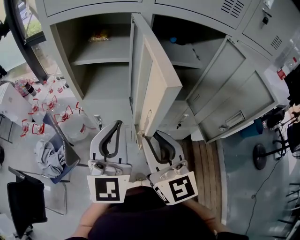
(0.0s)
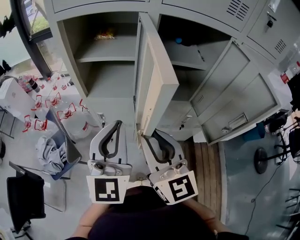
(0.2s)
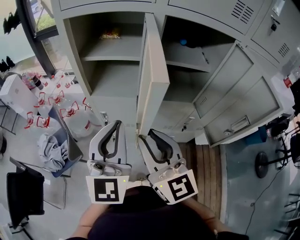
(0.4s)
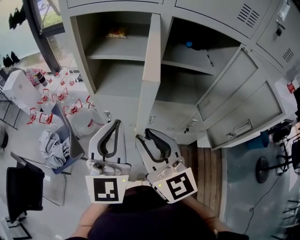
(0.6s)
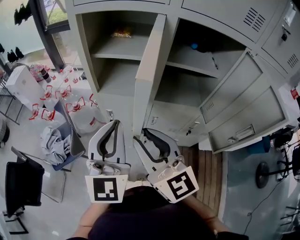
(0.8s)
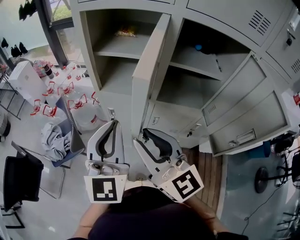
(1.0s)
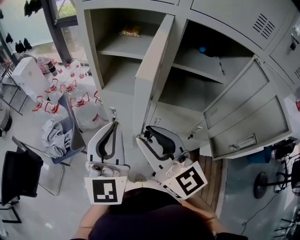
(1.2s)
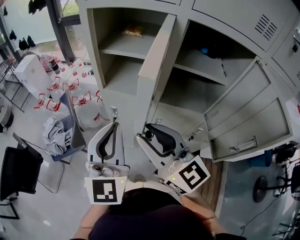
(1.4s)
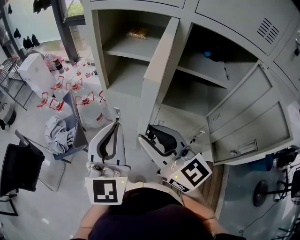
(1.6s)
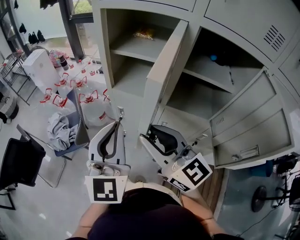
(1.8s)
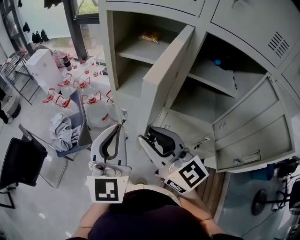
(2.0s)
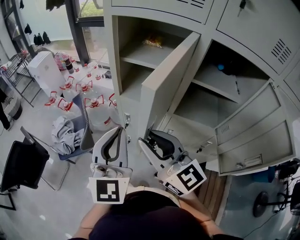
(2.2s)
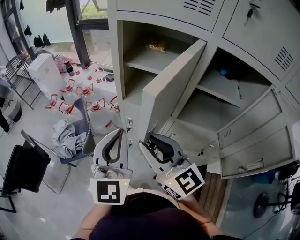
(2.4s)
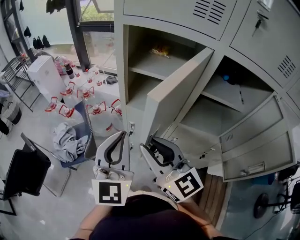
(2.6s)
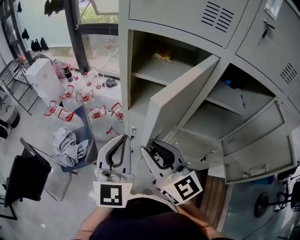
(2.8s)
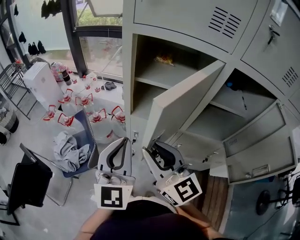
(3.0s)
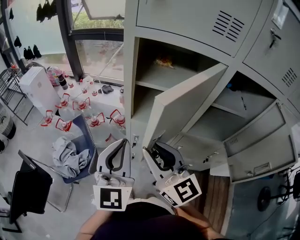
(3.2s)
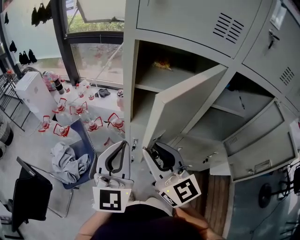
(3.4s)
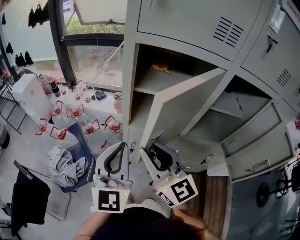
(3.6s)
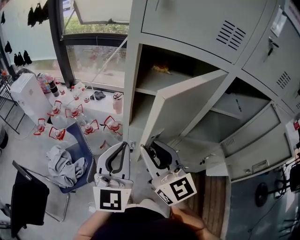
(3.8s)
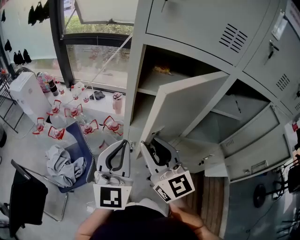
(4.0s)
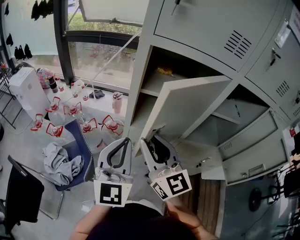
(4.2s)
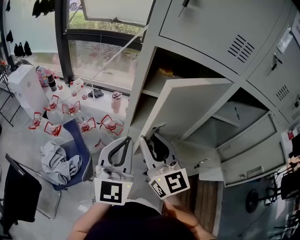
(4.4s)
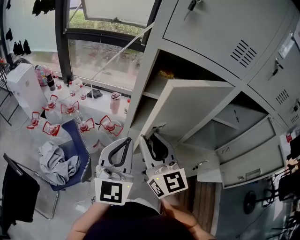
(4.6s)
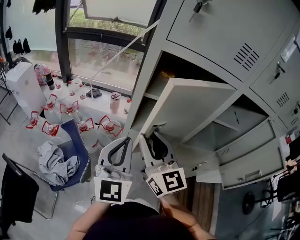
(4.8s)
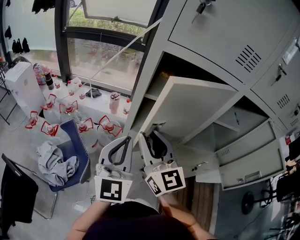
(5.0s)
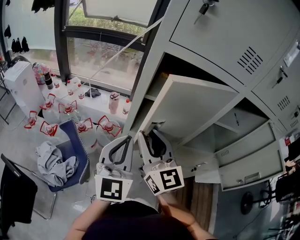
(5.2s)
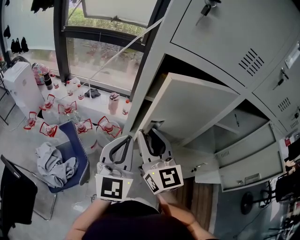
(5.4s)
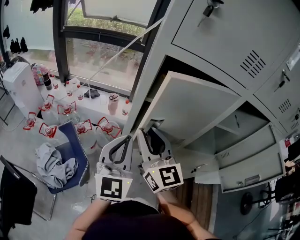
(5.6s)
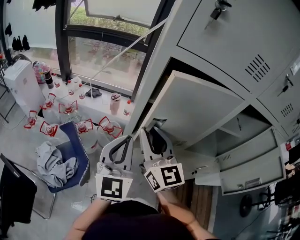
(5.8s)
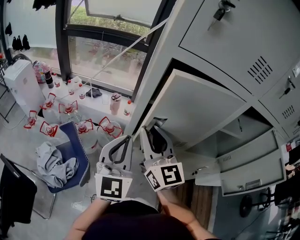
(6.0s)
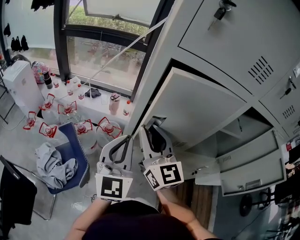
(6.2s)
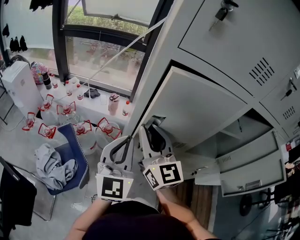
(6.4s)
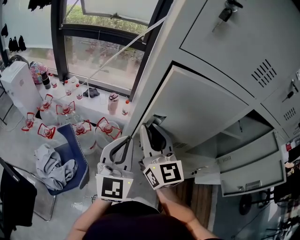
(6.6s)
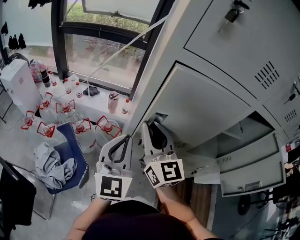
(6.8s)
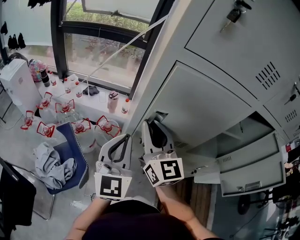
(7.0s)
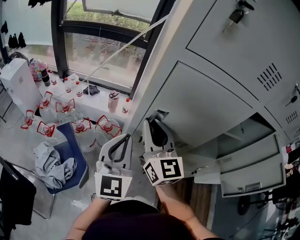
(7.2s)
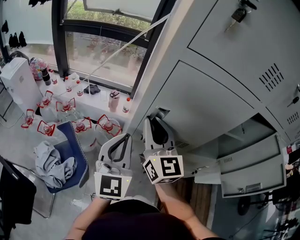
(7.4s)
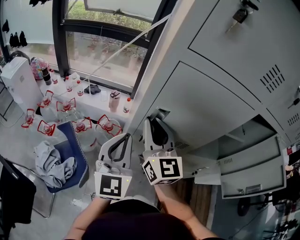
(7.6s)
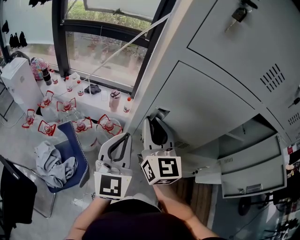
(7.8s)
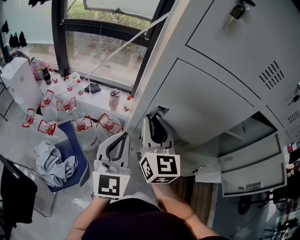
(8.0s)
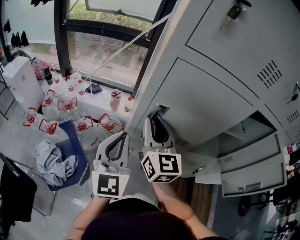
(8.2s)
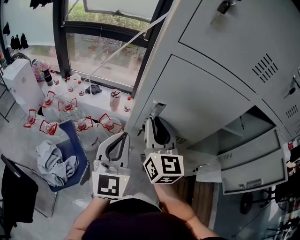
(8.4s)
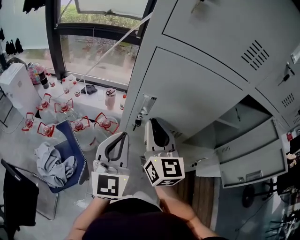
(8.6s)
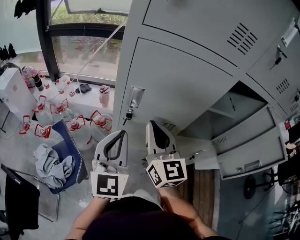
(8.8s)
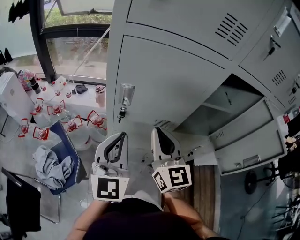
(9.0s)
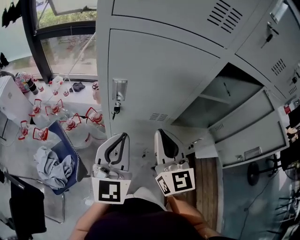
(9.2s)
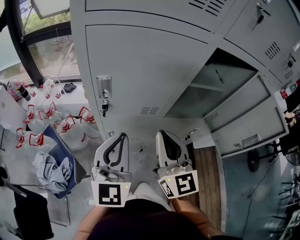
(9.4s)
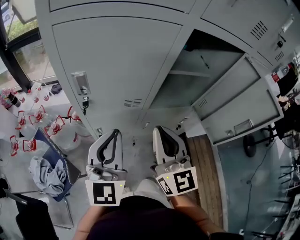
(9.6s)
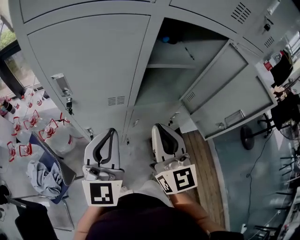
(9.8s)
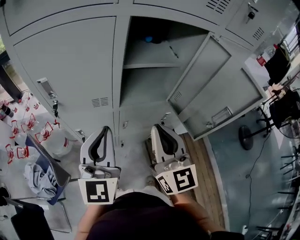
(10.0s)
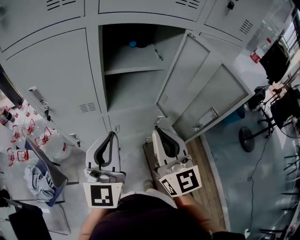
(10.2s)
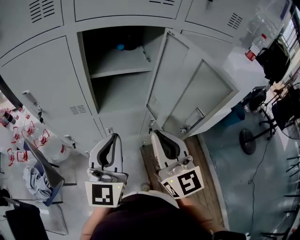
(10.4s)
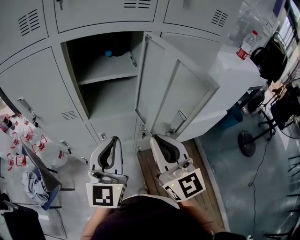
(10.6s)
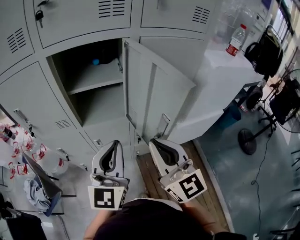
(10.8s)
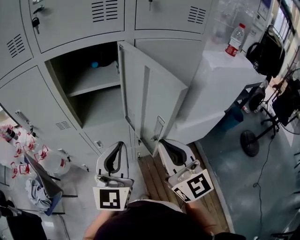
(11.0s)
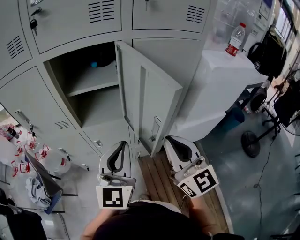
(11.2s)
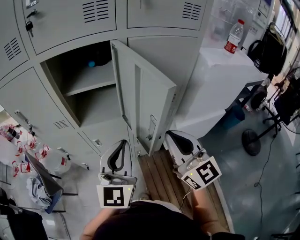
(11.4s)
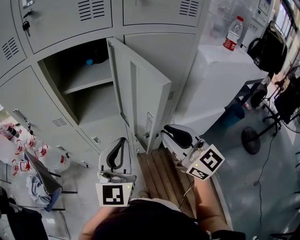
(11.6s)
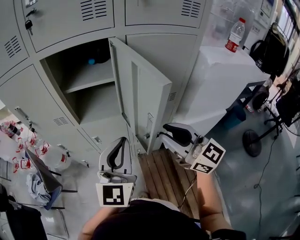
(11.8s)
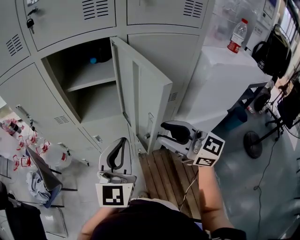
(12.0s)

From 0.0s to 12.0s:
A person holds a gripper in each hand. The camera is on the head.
From 0.0s to 1.6s: The right gripper turns by approximately 40 degrees.
From 1.6s to 3.0s: Both grippers travel together forward and to the left, roughly 15 cm.
From 3.0s to 4.4s: The two grippers go about 5 cm forward.
From 4.4s to 6.0s: The two grippers go approximately 5 cm forward.
From 6.0s to 7.6s: The right gripper is displaced forward by some 5 cm.
From 7.6s to 9.0s: The right gripper goes roughly 15 cm to the right and backward; the left gripper heads to the right and backward, covering approximately 10 cm.
From 9.0s to 10.4s: Both grippers move to the right, roughly 35 cm.
From 10.4s to 12.0s: Both grippers travel together to the right, about 15 cm. The right gripper changes its angle by roughly 40 degrees, and opens its fingers.

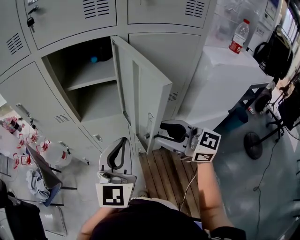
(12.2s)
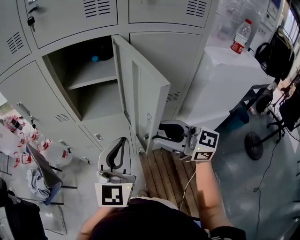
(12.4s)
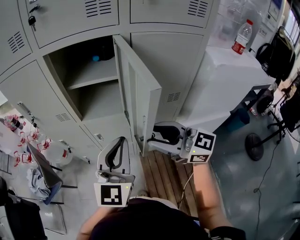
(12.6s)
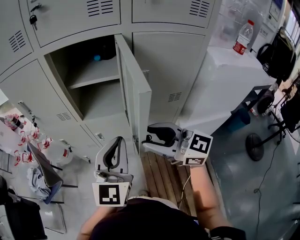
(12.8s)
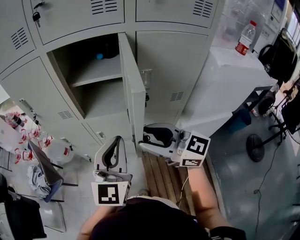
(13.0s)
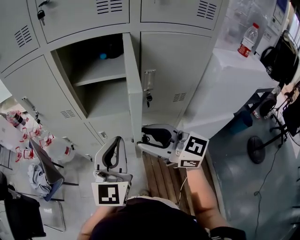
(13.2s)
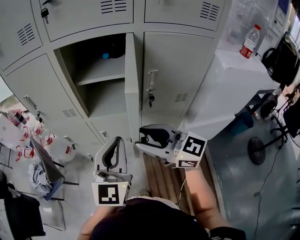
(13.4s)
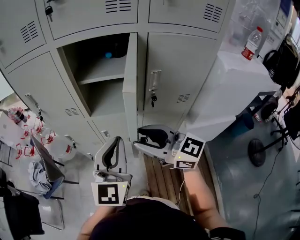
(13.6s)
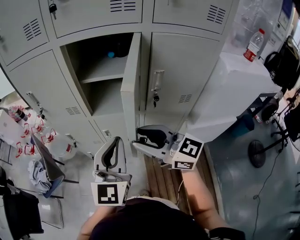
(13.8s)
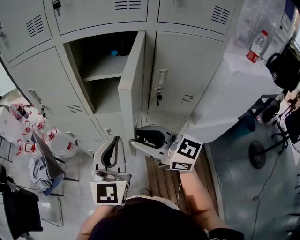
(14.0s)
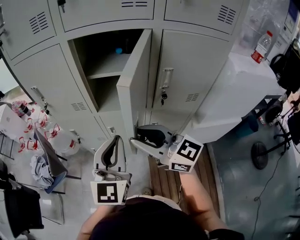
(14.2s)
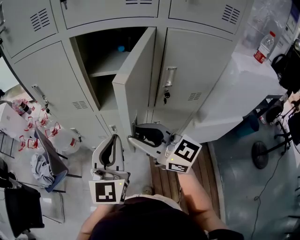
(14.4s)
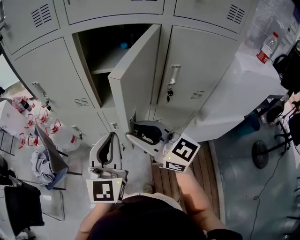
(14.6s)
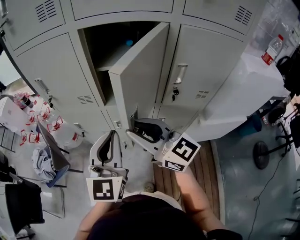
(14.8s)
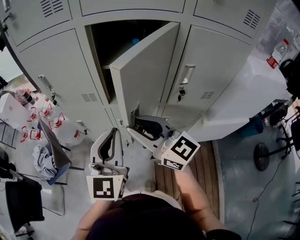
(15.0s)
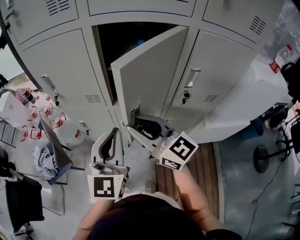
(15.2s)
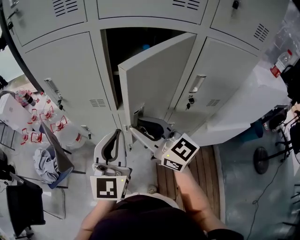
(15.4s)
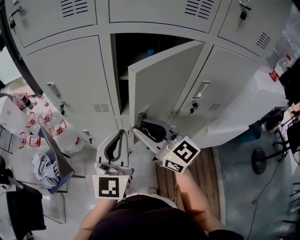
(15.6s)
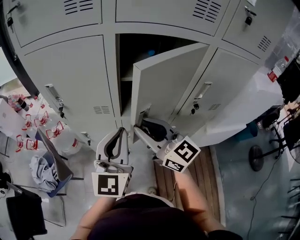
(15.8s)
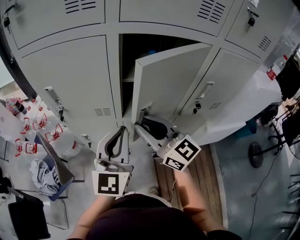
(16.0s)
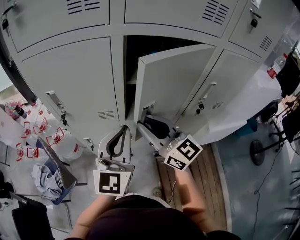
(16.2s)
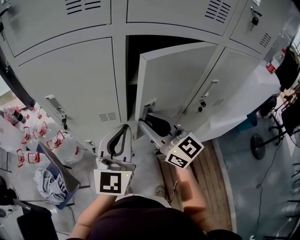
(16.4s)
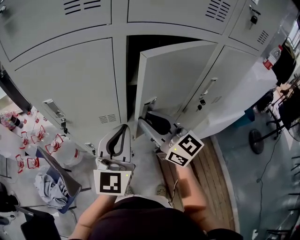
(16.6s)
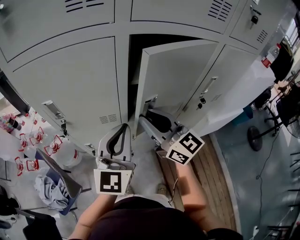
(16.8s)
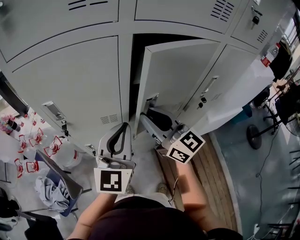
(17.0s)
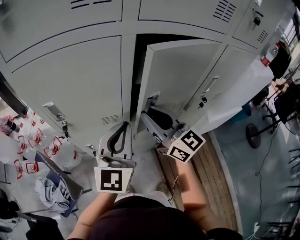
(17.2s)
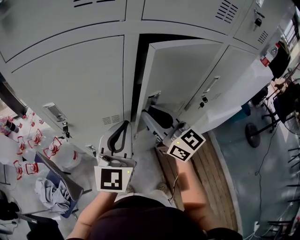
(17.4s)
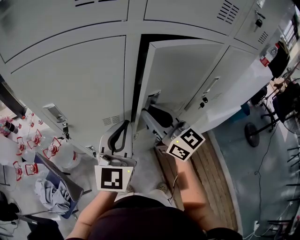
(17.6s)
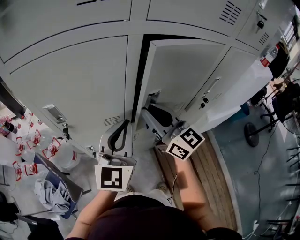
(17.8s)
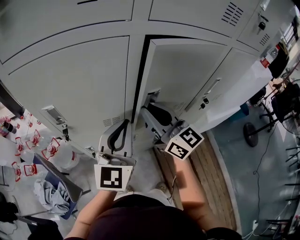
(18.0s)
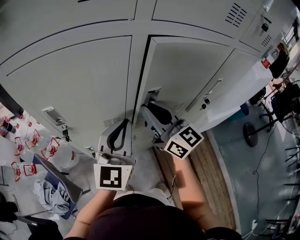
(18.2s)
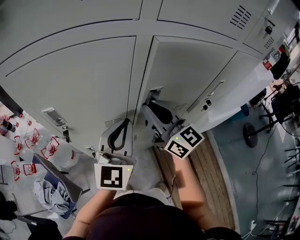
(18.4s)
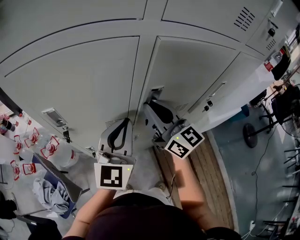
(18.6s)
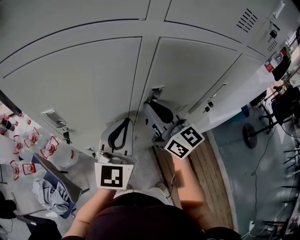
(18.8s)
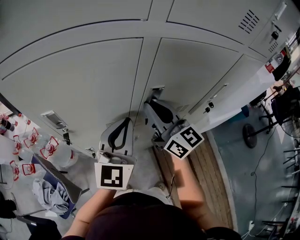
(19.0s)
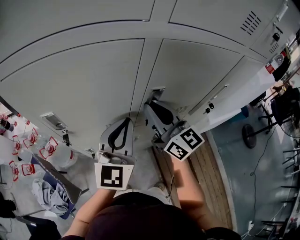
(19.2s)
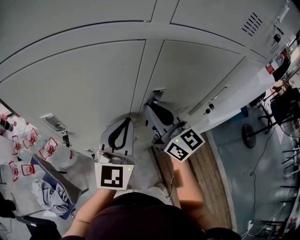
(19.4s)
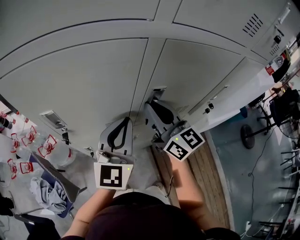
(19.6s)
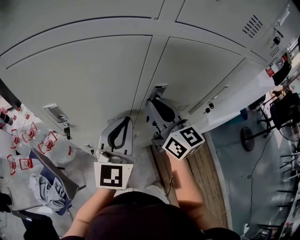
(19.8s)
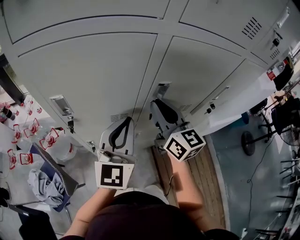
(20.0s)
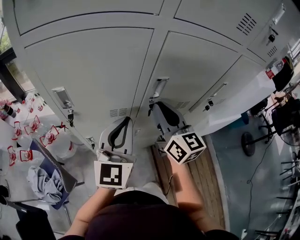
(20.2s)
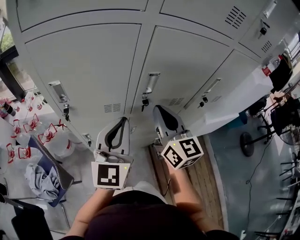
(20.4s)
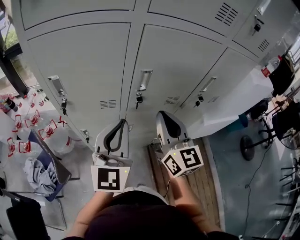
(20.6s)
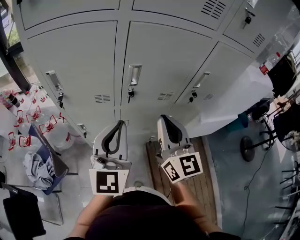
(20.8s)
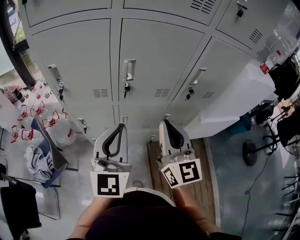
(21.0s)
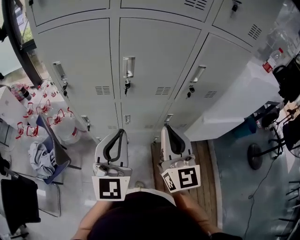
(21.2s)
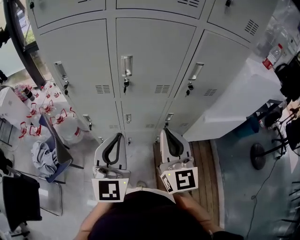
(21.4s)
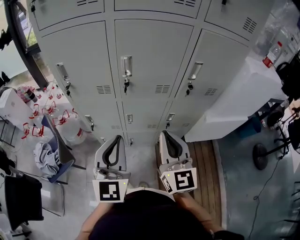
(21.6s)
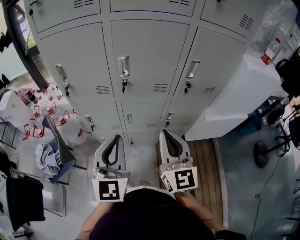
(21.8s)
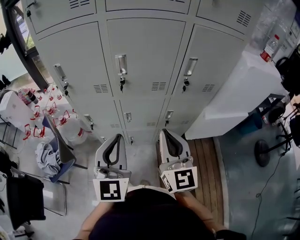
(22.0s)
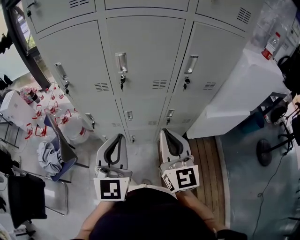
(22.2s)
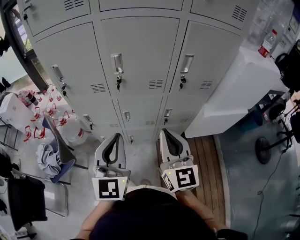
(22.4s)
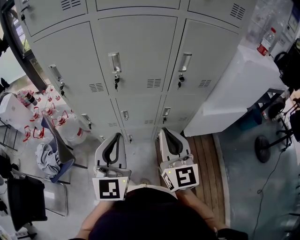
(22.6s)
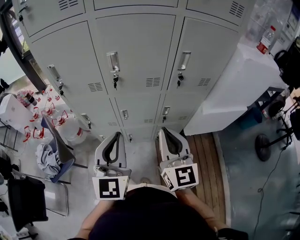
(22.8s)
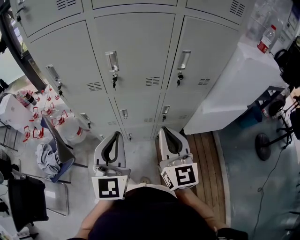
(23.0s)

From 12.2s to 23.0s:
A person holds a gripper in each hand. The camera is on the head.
From 12.2s to 13.8s: The left gripper travels to the left by approximately 5 cm; the right gripper goes approximately 10 cm to the left.
From 13.8s to 15.2s: The left gripper is displaced to the left and forward by roughly 10 cm. Meanwhile the right gripper heads forward and to the left, covering approximately 10 cm.
From 15.2s to 16.8s: The right gripper shifts roughly 10 cm forward, while the left gripper is displaced forward and to the left by approximately 15 cm.
From 16.8s to 18.4s: The right gripper goes about 5 cm forward; the left gripper moves roughly 5 cm.
From 18.4s to 20.0s: The grippers make only small movements.
From 20.0s to 21.4s: Both grippers travel together backward and to the right, approximately 25 cm.
From 21.4s to 23.0s: The right gripper changes place by roughly 5 cm.

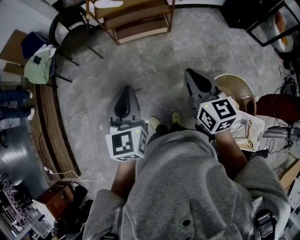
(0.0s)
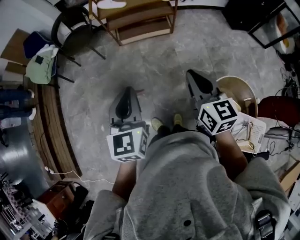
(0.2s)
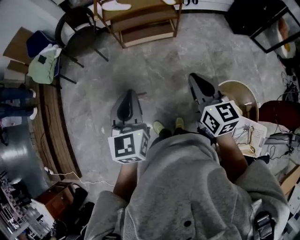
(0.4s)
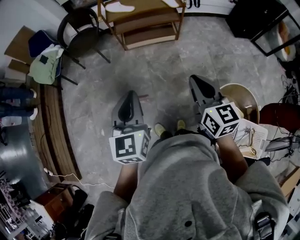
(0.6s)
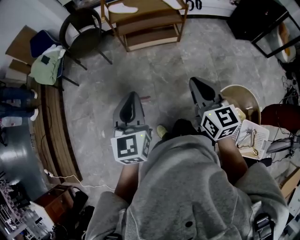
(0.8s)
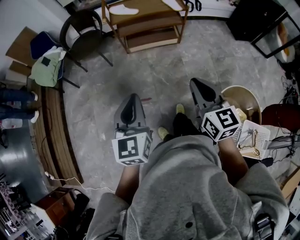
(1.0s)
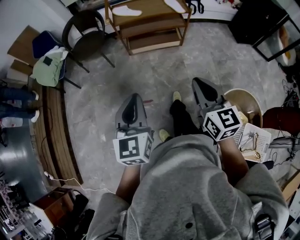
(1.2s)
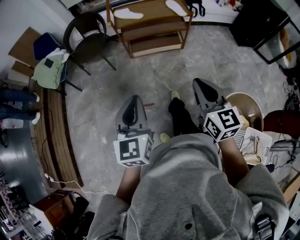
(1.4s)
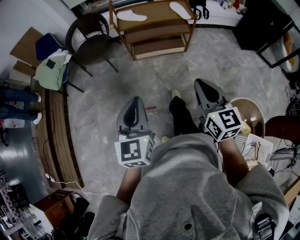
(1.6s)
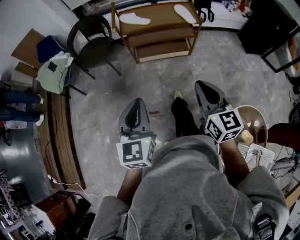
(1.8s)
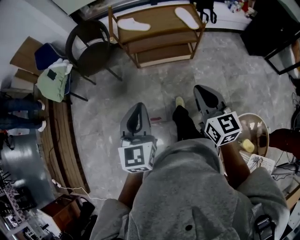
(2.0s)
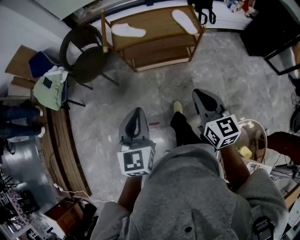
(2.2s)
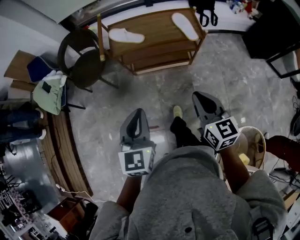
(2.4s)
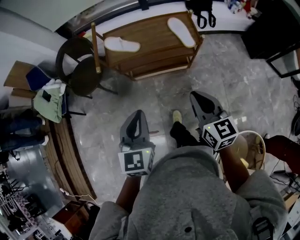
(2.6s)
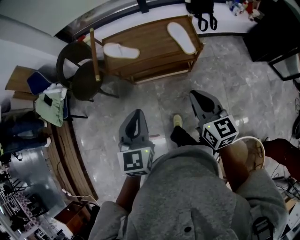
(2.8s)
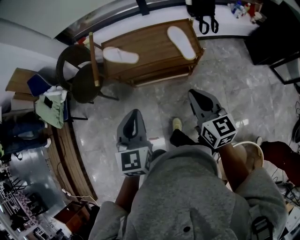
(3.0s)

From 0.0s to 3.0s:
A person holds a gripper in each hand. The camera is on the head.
From 0.0s to 1.6s: The right gripper heads forward and to the left, covering approximately 10 cm; the left gripper goes approximately 10 cm to the left and forward.
From 1.6s to 3.0s: The pair of grippers is taken forward and to the right, roughly 40 cm.
